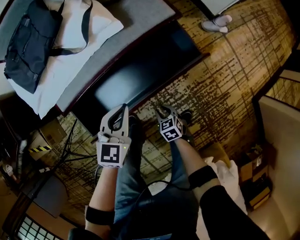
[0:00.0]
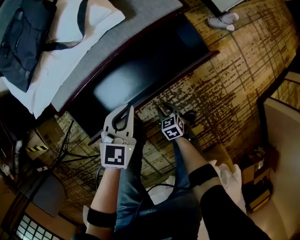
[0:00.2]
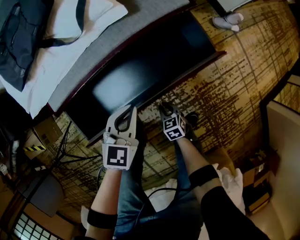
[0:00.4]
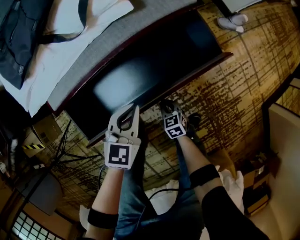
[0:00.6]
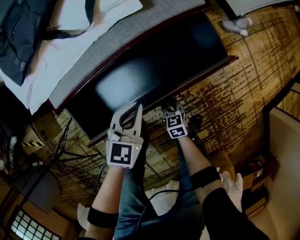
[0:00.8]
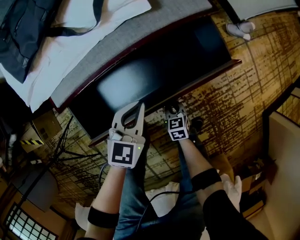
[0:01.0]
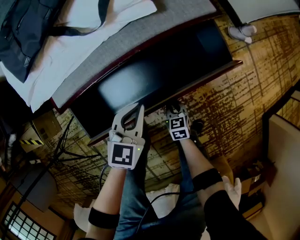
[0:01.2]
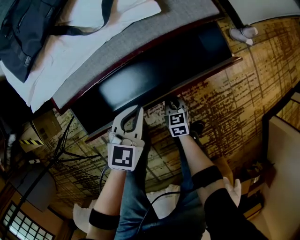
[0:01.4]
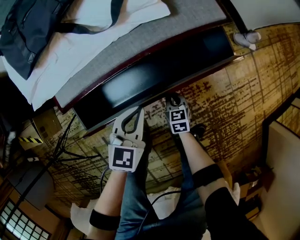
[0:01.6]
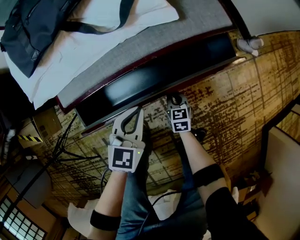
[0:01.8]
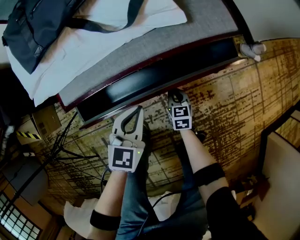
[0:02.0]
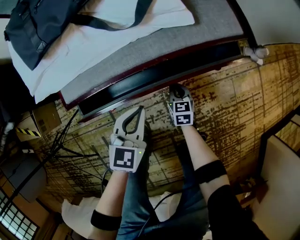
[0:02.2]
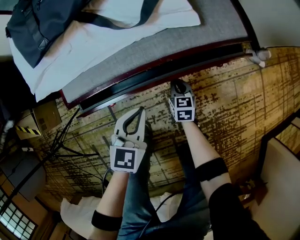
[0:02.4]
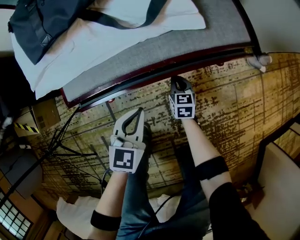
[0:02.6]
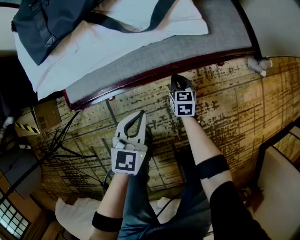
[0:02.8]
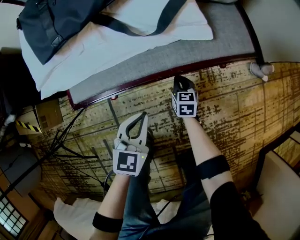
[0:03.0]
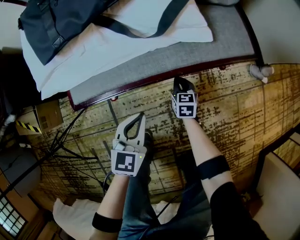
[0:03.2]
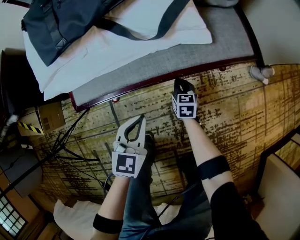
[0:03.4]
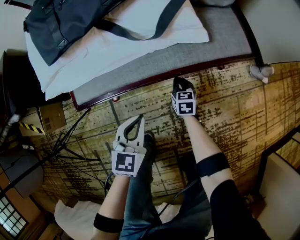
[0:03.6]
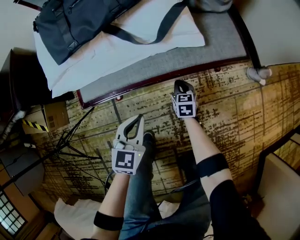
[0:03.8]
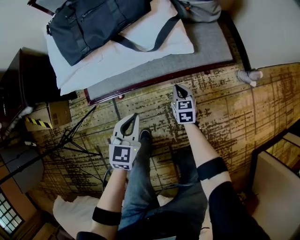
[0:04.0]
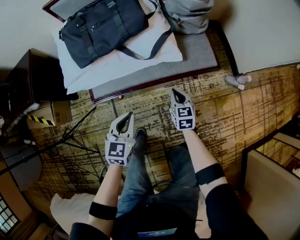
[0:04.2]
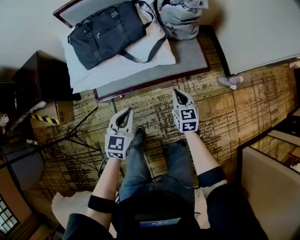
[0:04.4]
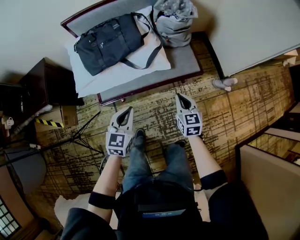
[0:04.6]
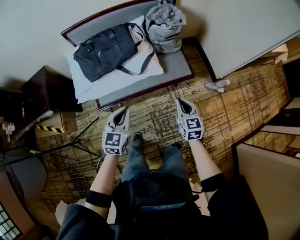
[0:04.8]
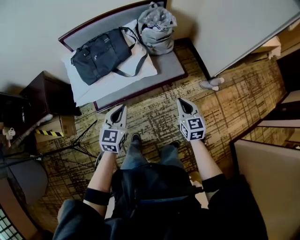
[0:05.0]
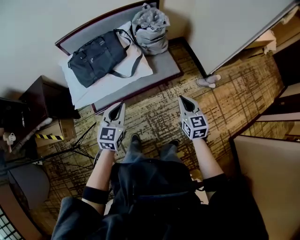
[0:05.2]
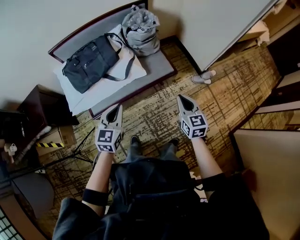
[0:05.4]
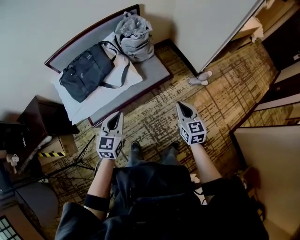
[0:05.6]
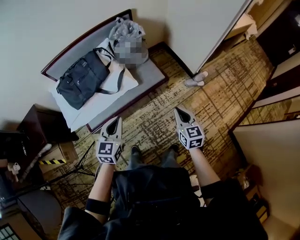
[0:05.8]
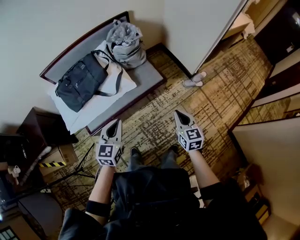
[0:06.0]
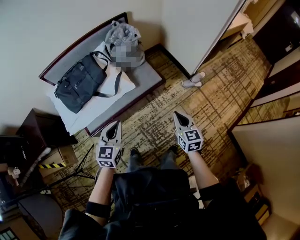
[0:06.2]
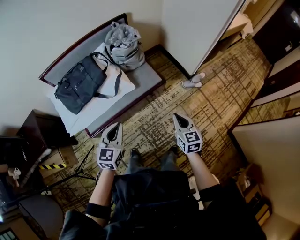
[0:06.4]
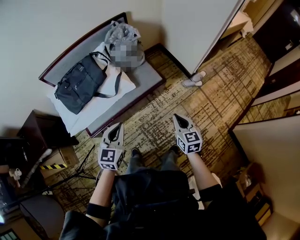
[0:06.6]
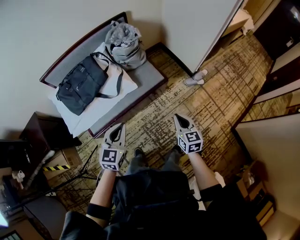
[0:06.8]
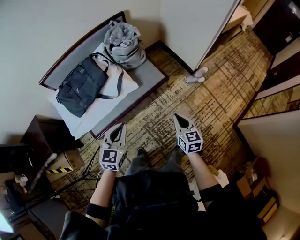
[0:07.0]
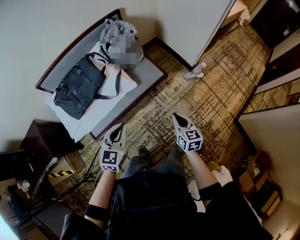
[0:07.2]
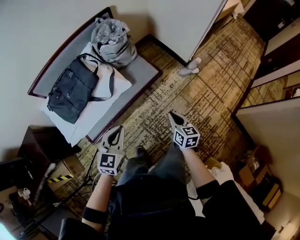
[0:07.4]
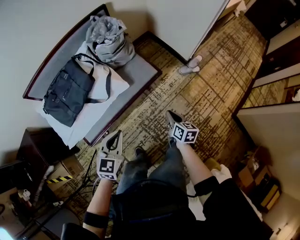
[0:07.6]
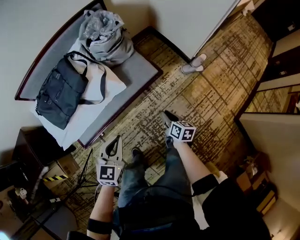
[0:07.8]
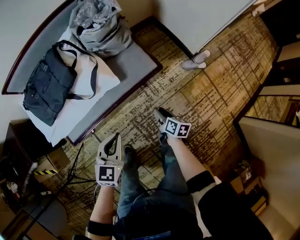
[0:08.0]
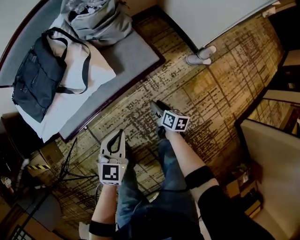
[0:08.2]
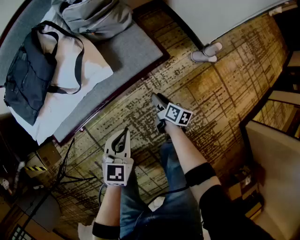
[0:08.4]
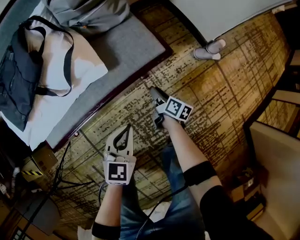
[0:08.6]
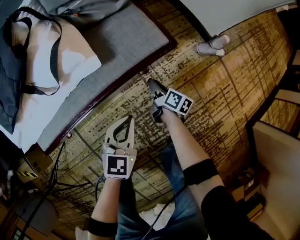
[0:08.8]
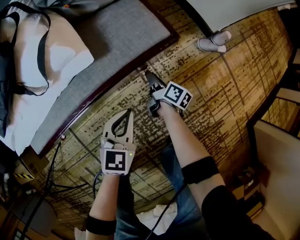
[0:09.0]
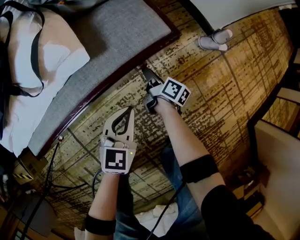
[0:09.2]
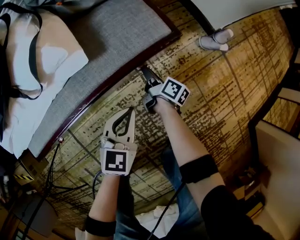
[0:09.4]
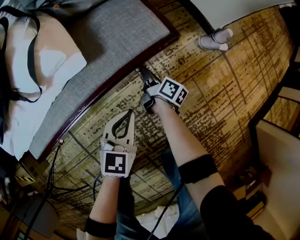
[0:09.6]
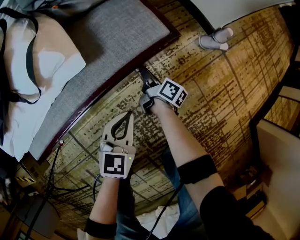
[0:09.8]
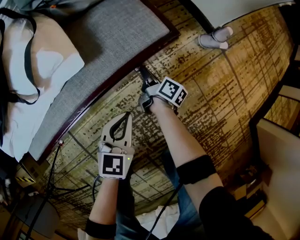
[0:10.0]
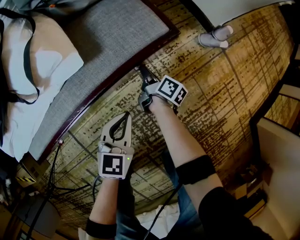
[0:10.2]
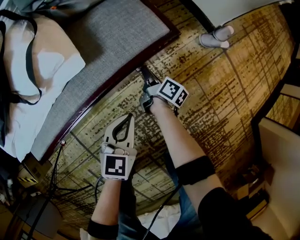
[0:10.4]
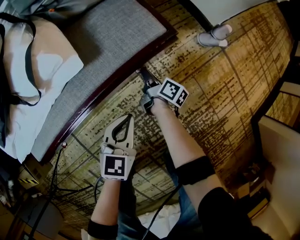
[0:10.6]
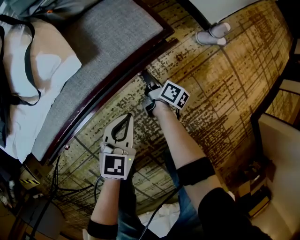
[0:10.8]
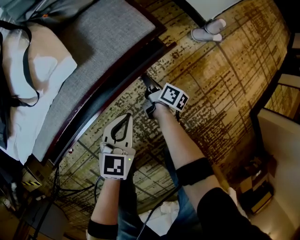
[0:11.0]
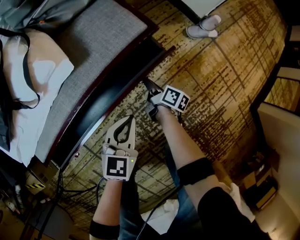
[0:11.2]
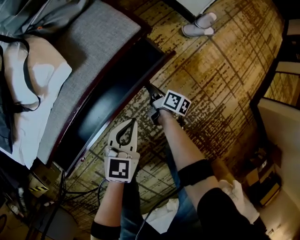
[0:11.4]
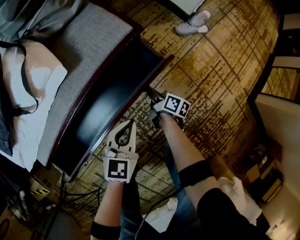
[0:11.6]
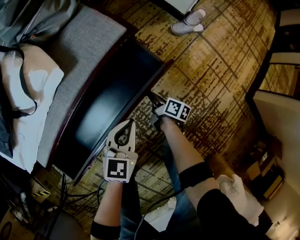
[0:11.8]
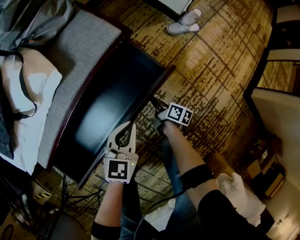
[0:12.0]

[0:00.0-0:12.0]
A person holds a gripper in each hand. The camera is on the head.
0:00.0 to 0:01.6: The left gripper heads downward and to the left, covering about 15 cm; the right gripper heads forward, downward and to the left, covering about 15 cm, and closes its fingers.
0:01.6 to 0:03.0: The right gripper goes approximately 15 cm forward; the left gripper moves to the left, approximately 10 cm.
0:03.0 to 0:04.4: The grippers both shift upward by approximately 35 cm.
0:04.4 to 0:06.0: The right gripper is displaced upward, to the right and backward by approximately 30 cm, while the left gripper shifts roughly 20 cm upward and to the right.
0:06.0 to 0:07.6: The right gripper is displaced downward by approximately 15 cm, and swivels approximately 30 degrees. The left gripper goes about 5 cm downward.
0:07.6 to 0:09.0: The right gripper travels downward and forward by about 50 cm, rotates some 30 degrees, and opens up. The left gripper is displaced downward by roughly 40 cm.
0:09.0 to 0:10.4: There are only small adjustments of the grippers.
0:10.4 to 0:12.0: The left gripper moves to the right, backward and upward, some 15 cm. The right gripper moves backward and to the right, roughly 25 cm.

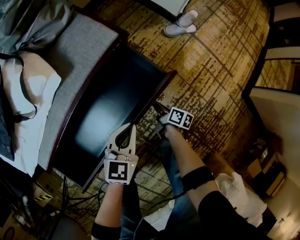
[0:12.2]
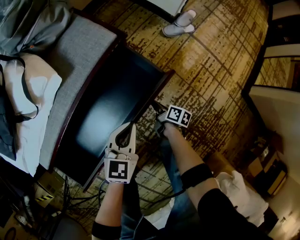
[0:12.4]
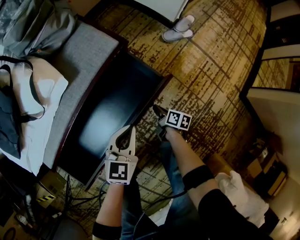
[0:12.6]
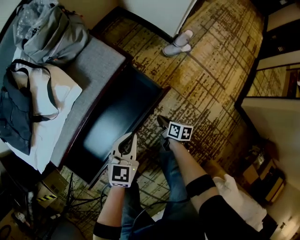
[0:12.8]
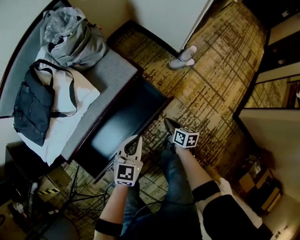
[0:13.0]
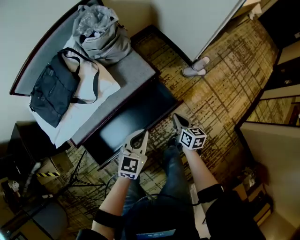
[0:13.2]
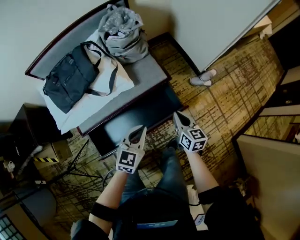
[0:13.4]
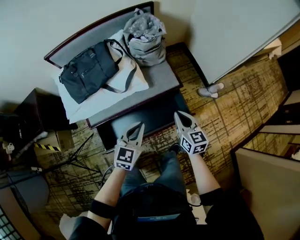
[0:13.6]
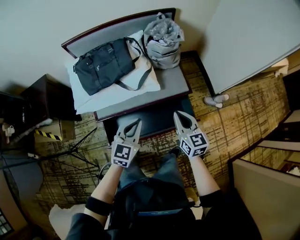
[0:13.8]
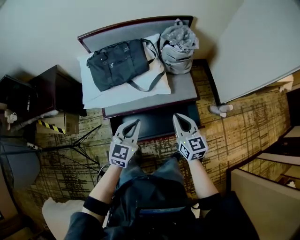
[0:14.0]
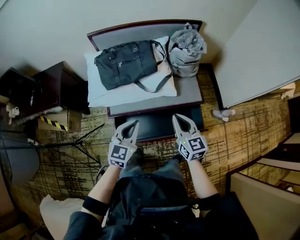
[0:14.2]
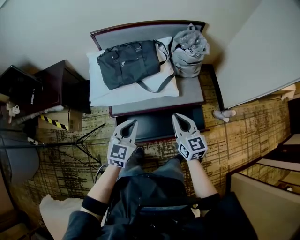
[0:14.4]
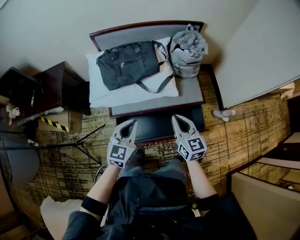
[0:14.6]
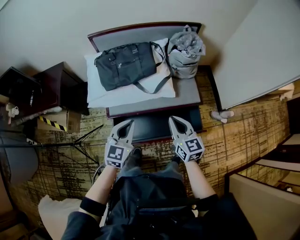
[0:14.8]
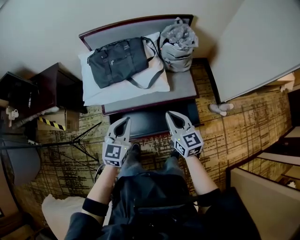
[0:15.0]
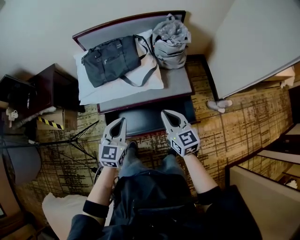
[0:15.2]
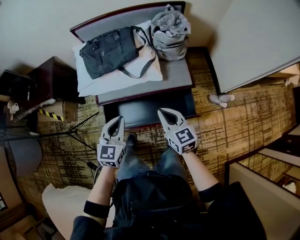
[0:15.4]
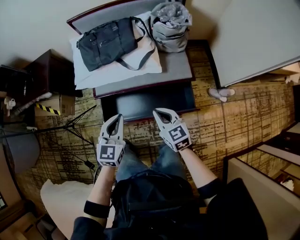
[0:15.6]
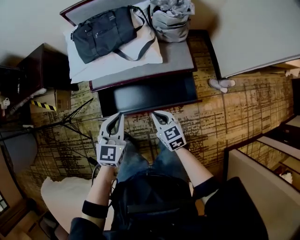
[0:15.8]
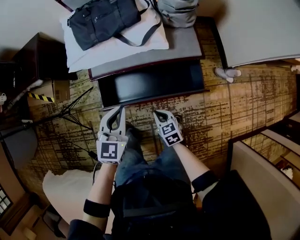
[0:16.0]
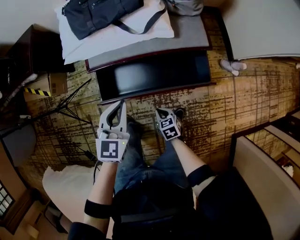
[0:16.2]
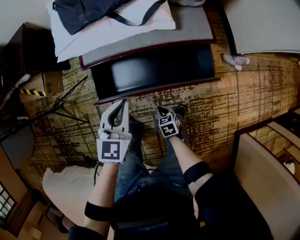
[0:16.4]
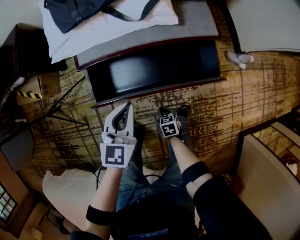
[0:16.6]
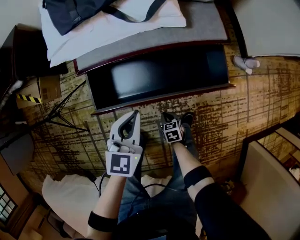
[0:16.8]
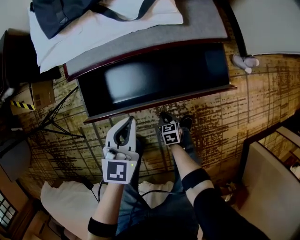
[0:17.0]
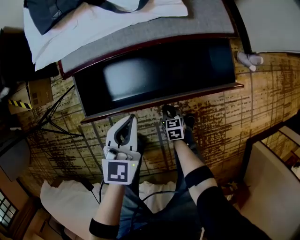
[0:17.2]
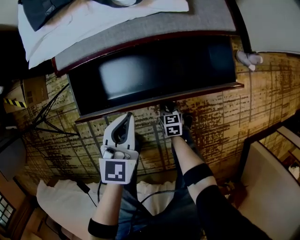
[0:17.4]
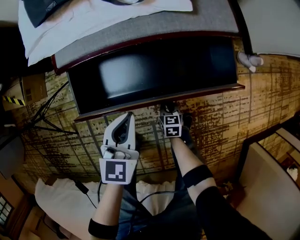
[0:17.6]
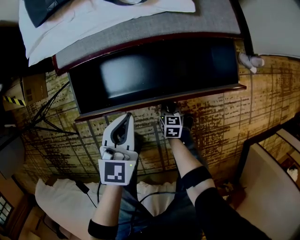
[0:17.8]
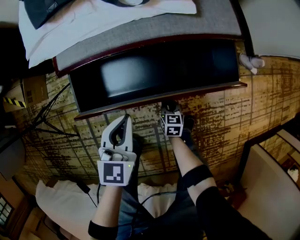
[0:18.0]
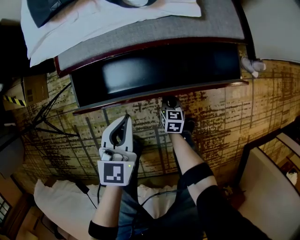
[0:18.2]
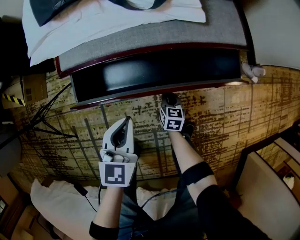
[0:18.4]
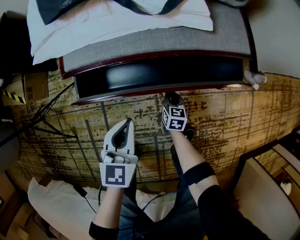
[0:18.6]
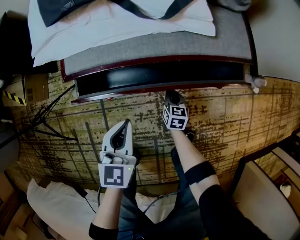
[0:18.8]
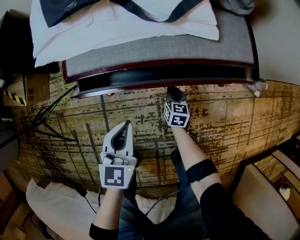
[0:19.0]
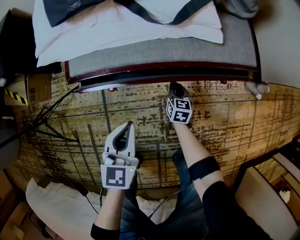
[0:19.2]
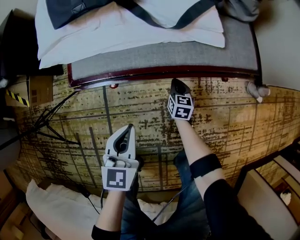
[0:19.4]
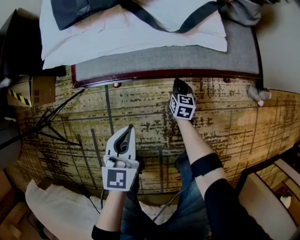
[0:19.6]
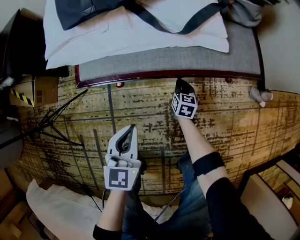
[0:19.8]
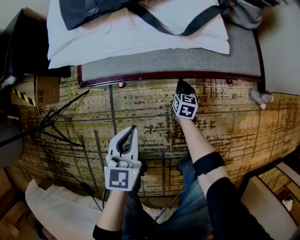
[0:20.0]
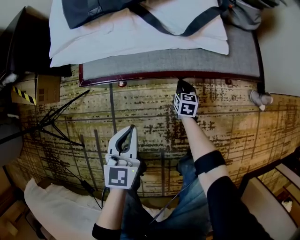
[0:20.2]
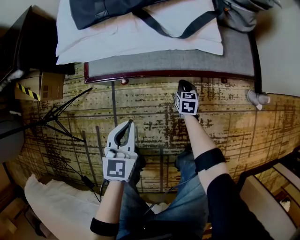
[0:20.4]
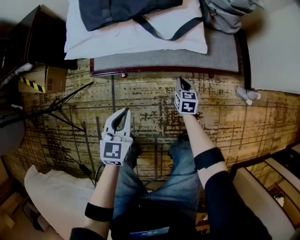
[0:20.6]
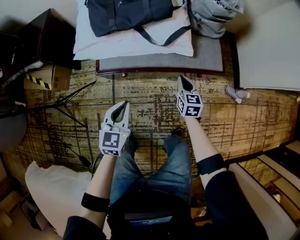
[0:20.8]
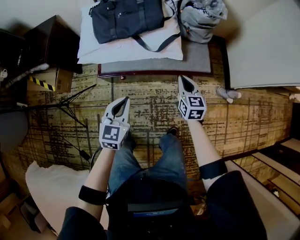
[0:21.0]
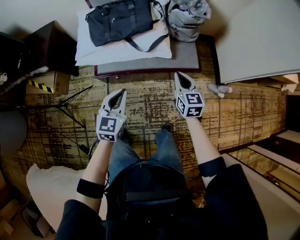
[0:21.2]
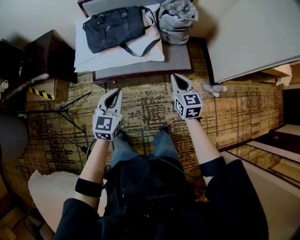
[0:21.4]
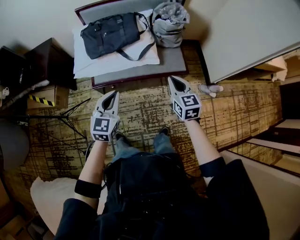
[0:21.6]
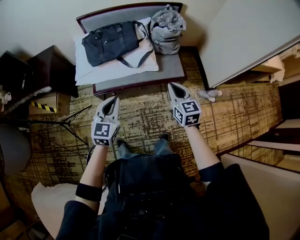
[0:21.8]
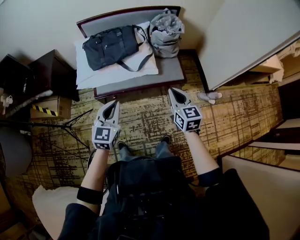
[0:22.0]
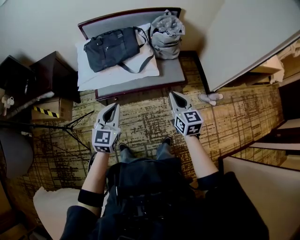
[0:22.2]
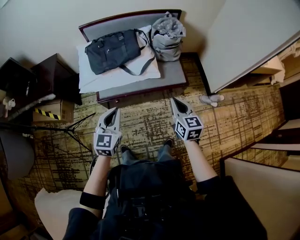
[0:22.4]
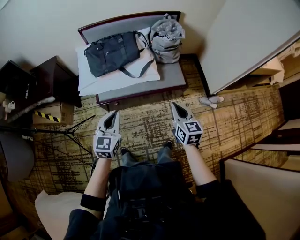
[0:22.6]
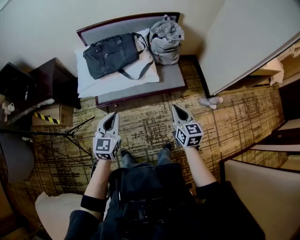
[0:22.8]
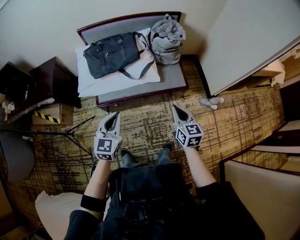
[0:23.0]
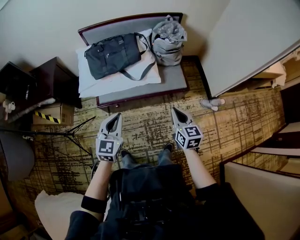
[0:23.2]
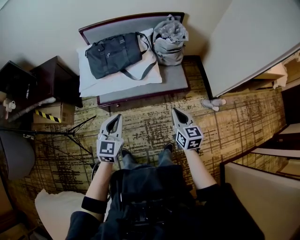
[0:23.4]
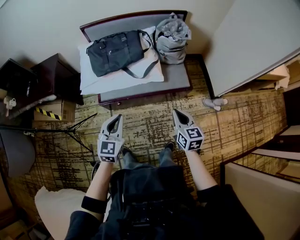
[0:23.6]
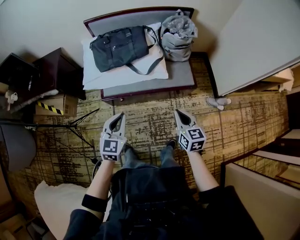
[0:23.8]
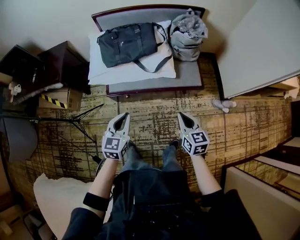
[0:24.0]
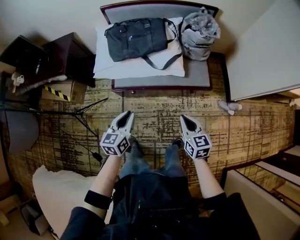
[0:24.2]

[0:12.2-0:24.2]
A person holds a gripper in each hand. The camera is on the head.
0:12.2 to 0:13.8: Both grippers travel together upward, about 50 cm. The left gripper turns by roughly 30 degrees. The right gripper rolls counterclockwise, seen from behind, by roughly 70 degrees.
0:13.8 to 0:15.2: The grippers both shift to the left by roughly 5 cm.
0:15.2 to 0:16.6: The left gripper is displaced downward by some 25 cm, while the right gripper moves downward, about 50 cm, and angles its fingers downward, by about 40 degrees.
0:16.6 to 0:18.2: The right gripper travels downward and forward by approximately 20 cm, and rotates approximately 20 degrees; the left gripper heads downward, covering approximately 15 cm.
0:18.2 to 0:19.8: The left gripper heads to the left, covering some 5 cm. Meanwhile the right gripper heads forward, covering about 20 cm.
0:19.8 to 0:21.2: The right gripper moves upward, some 60 cm, and turns by roughly 20 degrees. The left gripper heads upward, covering some 35 cm.
0:21.2 to 0:22.6: The right gripper goes some 15 cm backward and upward; the left gripper goes some 10 cm upward.
0:22.6 to 0:24.2: The left gripper is displaced downward by approximately 10 cm, and rotates some 30 degrees. Meanwhile the right gripper is displaced downward and to the left by approximately 10 cm.
